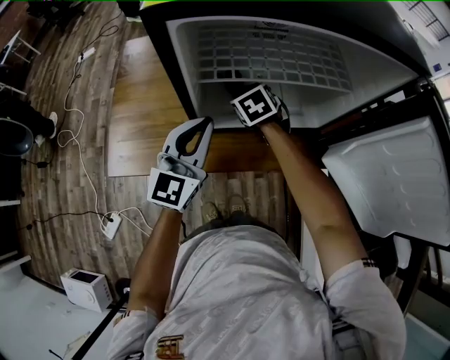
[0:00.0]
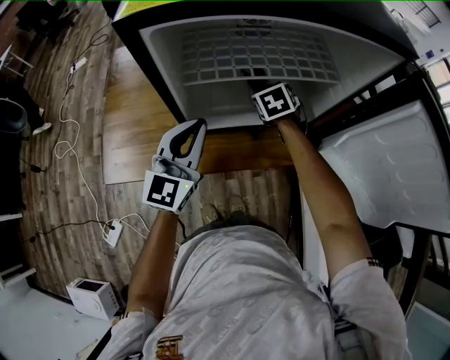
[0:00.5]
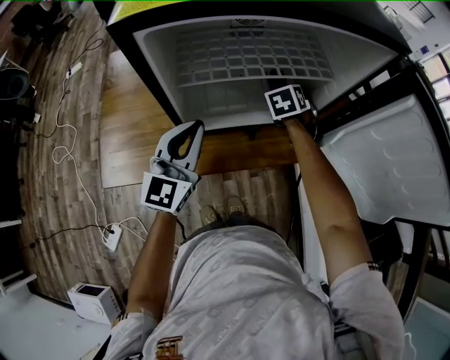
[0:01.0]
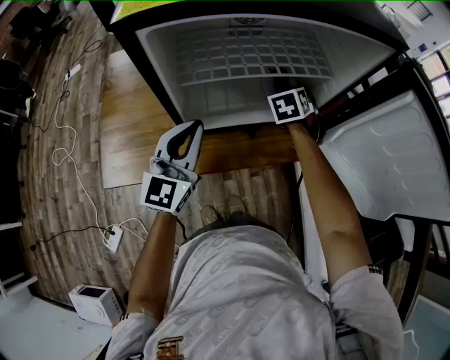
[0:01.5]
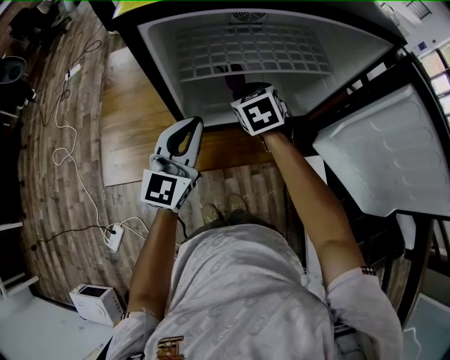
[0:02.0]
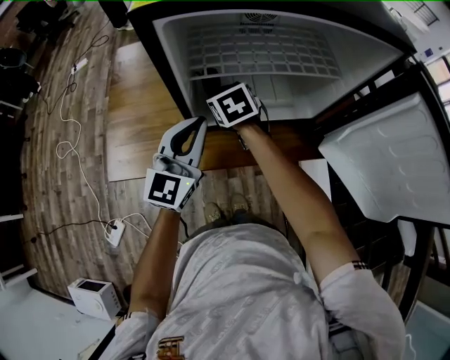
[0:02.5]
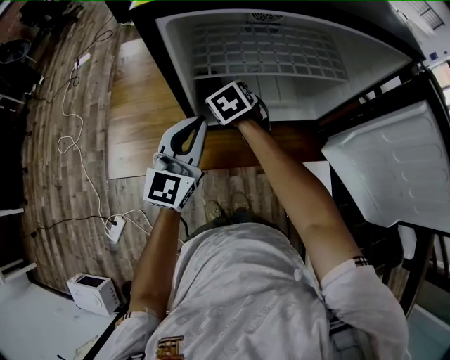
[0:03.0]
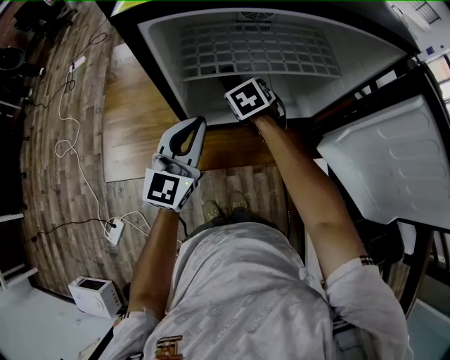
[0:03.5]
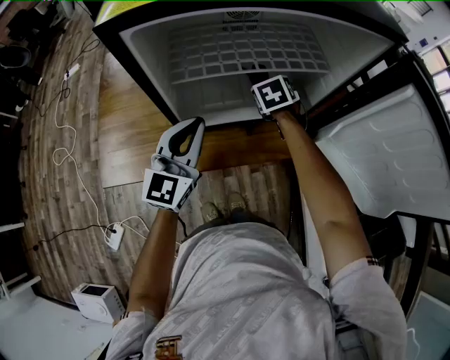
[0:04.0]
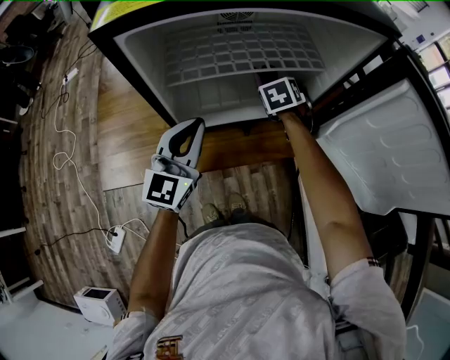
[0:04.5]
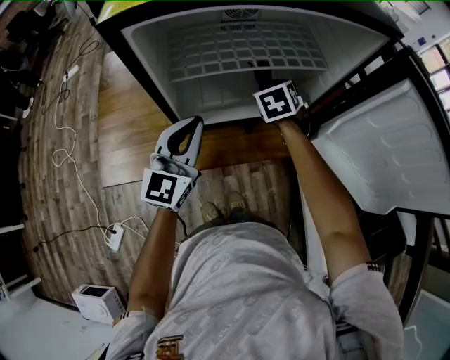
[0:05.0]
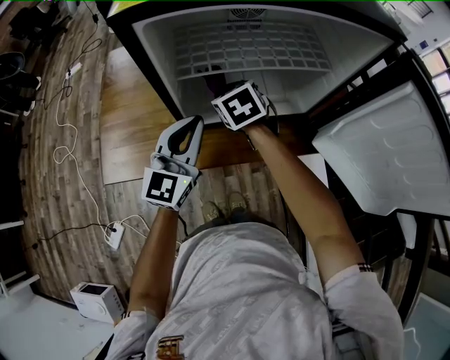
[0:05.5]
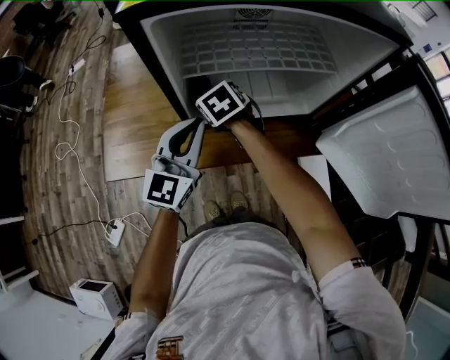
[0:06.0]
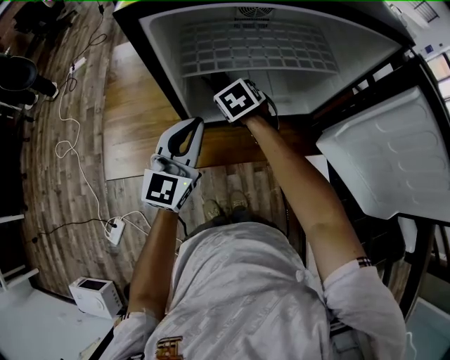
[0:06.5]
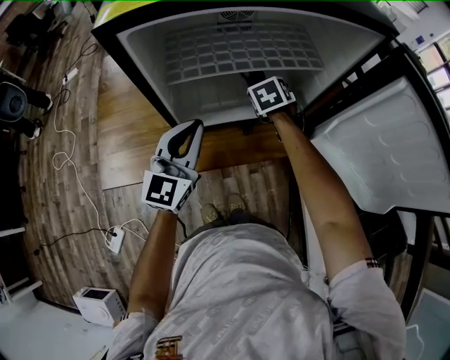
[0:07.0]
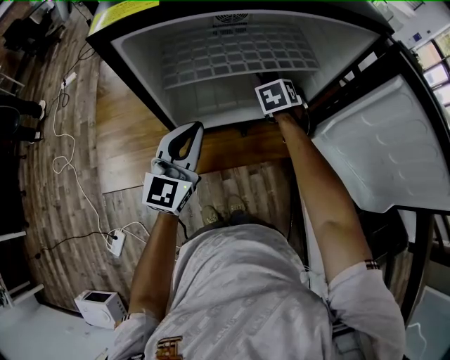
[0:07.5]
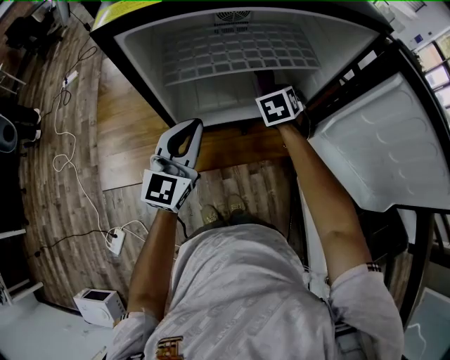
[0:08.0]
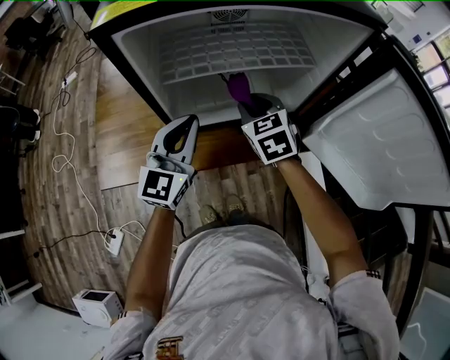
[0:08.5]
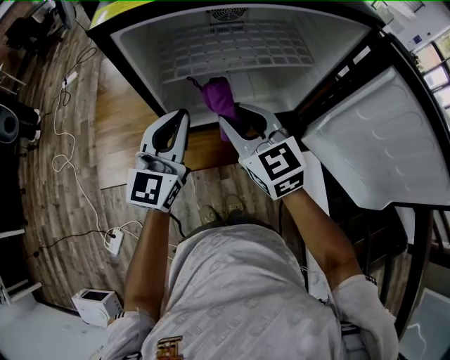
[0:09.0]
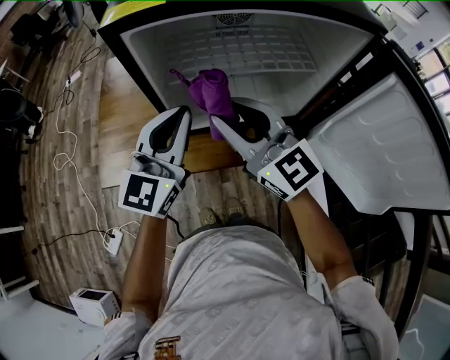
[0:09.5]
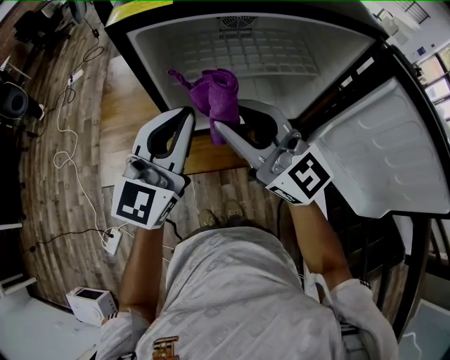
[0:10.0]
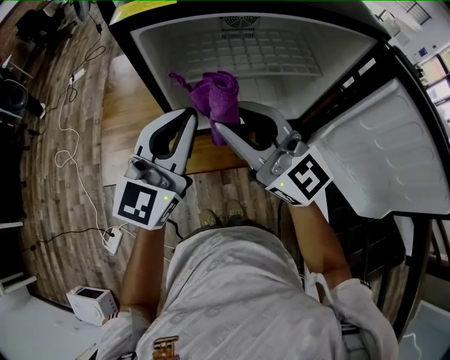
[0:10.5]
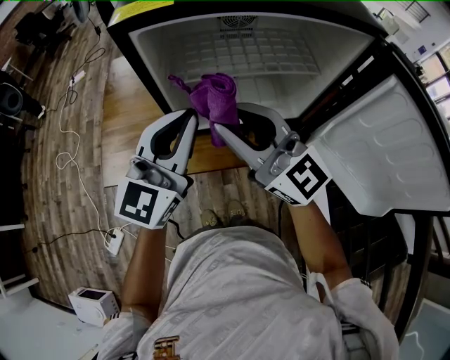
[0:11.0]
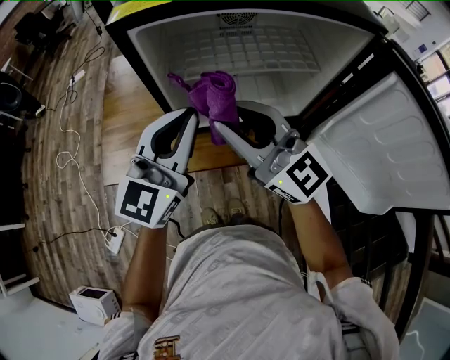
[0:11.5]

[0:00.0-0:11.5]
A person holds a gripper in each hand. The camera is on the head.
0:00.0 to 0:02.0: The right gripper travels upward by about 5 cm, and goes to the right and returns, roughly 20 cm each way.
0:02.0 to 0:04.0: The right gripper travels to the right and downward by roughly 10 cm.
0:04.0 to 0:06.0: The right gripper travels to the left and backward by about 20 cm, and changes its angle by some 20 degrees.
0:06.0 to 0:07.5: The right gripper changes place by approximately 25 cm, and turns by some 30 degrees.
0:07.5 to 0:09.5: The left gripper travels upward by roughly 10 cm. The right gripper moves about 35 cm, and tilts its fingers approximately 60 degrees upward.
0:09.5 to 0:11.5: The grippers make only small movements.

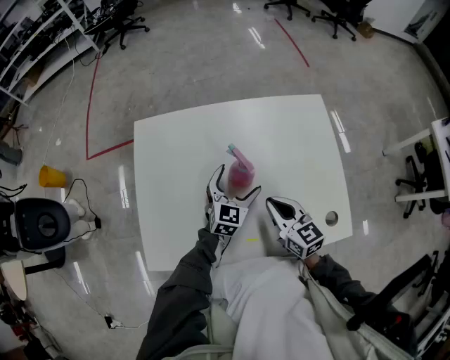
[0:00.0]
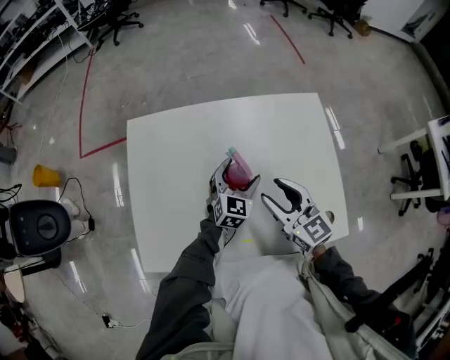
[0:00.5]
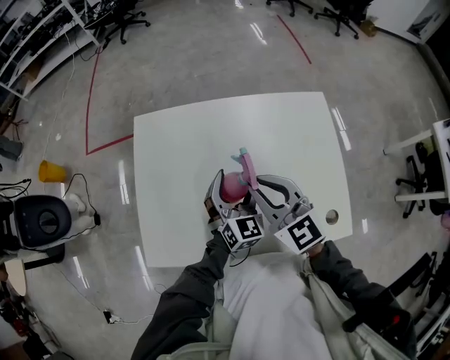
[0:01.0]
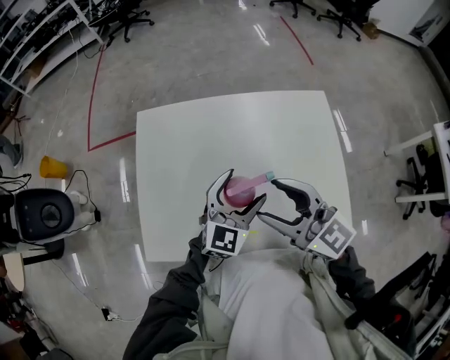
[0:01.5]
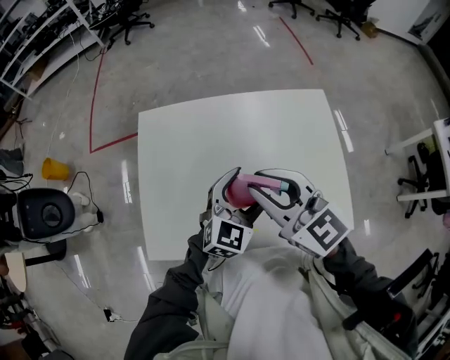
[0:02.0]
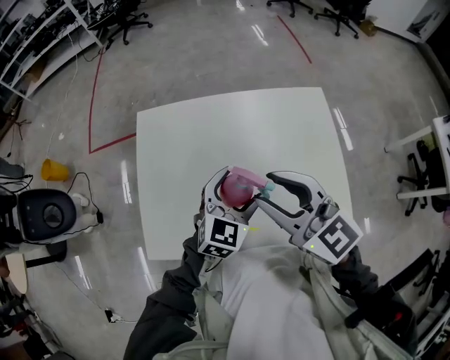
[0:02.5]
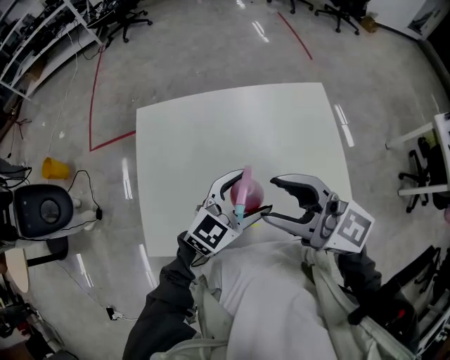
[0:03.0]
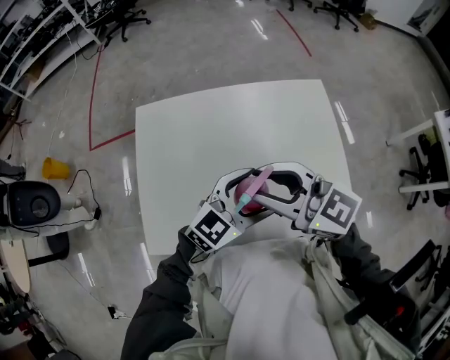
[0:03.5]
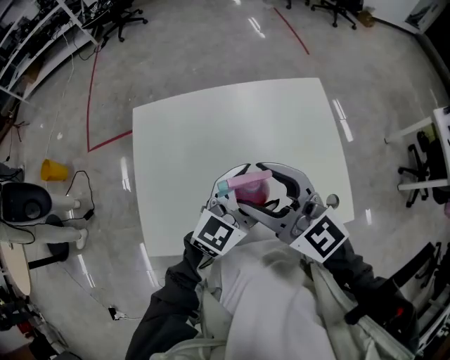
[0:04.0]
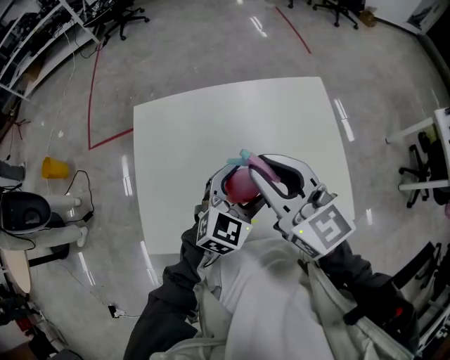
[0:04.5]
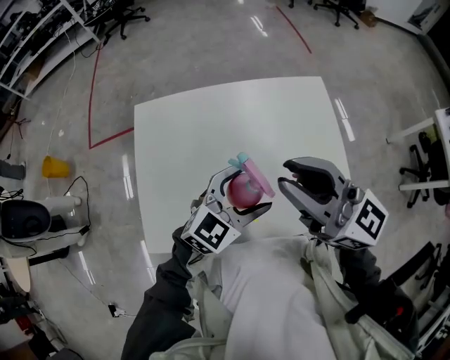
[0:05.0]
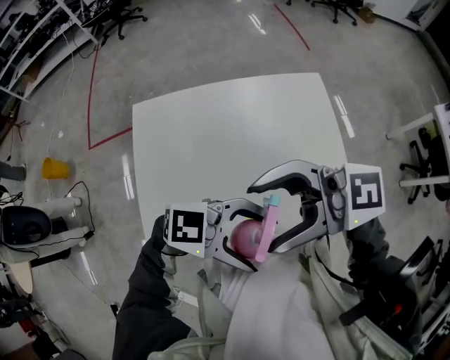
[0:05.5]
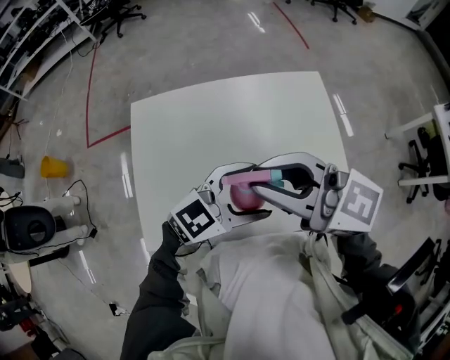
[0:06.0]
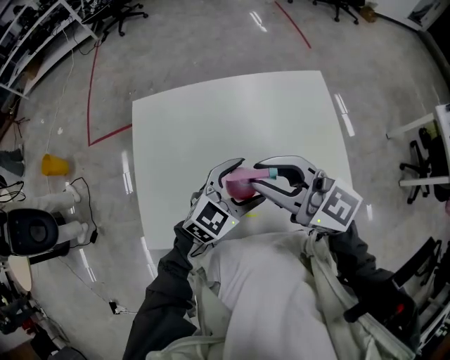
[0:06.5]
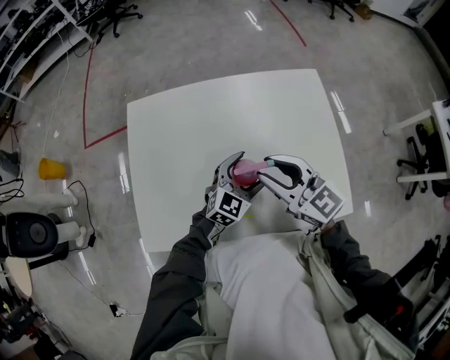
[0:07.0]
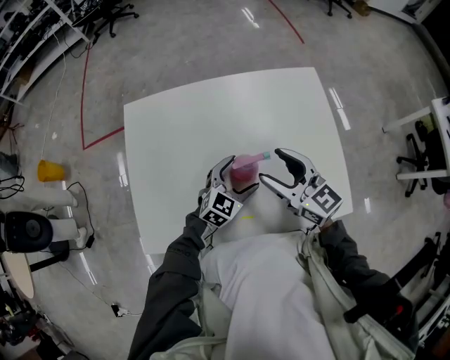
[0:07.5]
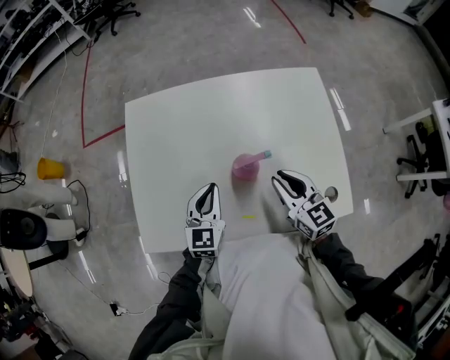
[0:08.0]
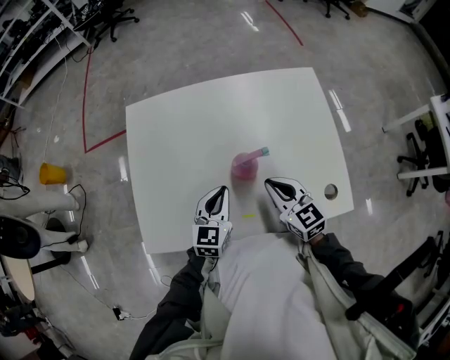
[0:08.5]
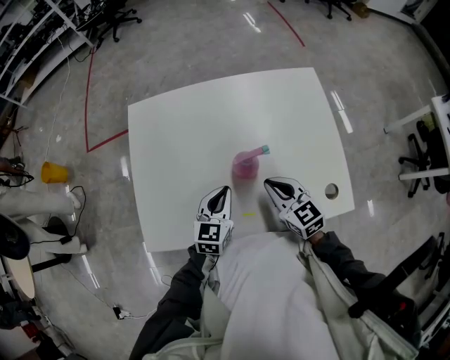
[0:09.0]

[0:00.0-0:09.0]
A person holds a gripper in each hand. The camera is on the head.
0:00.0 to 0:02.0: The right gripper heads upward, covering roughly 20 cm, changes its angle by approximately 20 degrees, and opens, then closes again; the left gripper travels upward and backward by some 15 cm.
0:02.0 to 0:04.5: The right gripper opens, then closes again.
0:04.5 to 0:07.0: The two grippers go some 10 cm downward. The right gripper opens, then closes again.
0:07.0 to 0:09.0: The right gripper moves downward, roughly 10 cm, and closes; the left gripper is displaced to the left by about 10 cm, swivels some 30 degrees, and closes up.

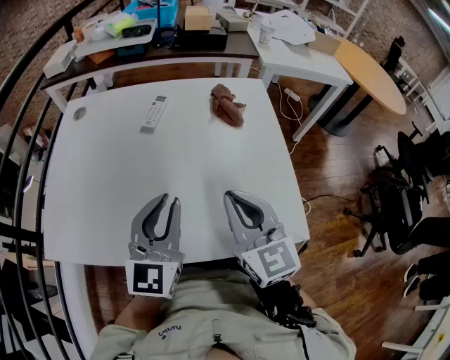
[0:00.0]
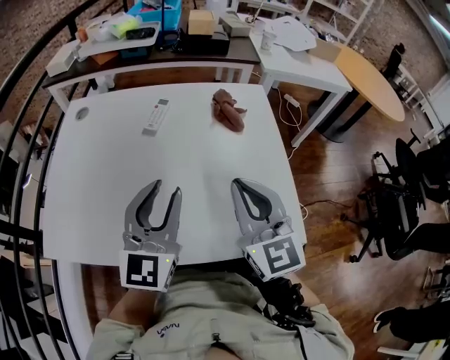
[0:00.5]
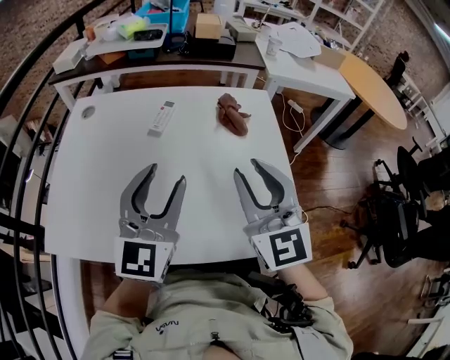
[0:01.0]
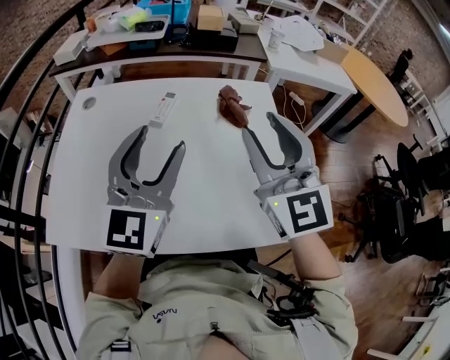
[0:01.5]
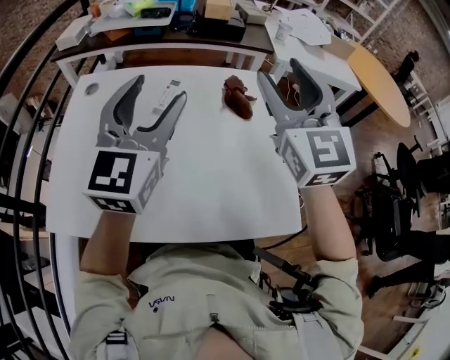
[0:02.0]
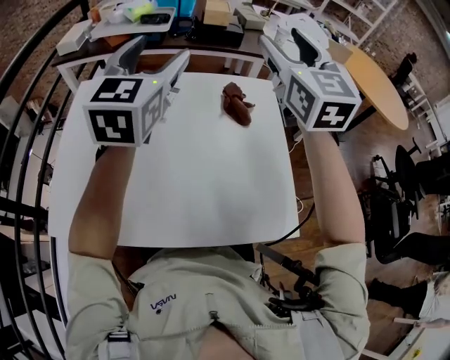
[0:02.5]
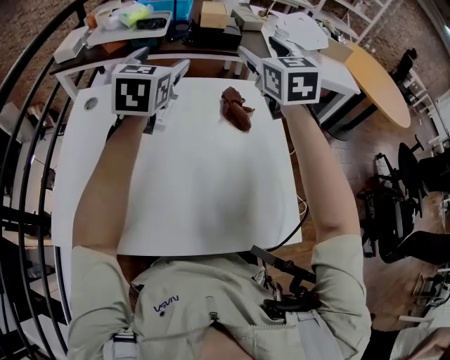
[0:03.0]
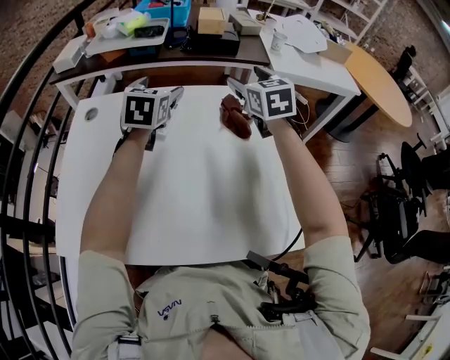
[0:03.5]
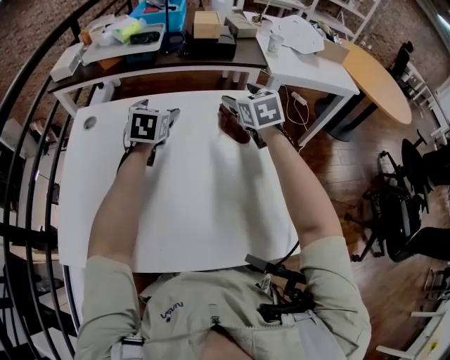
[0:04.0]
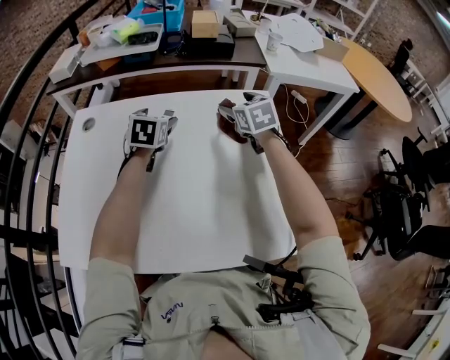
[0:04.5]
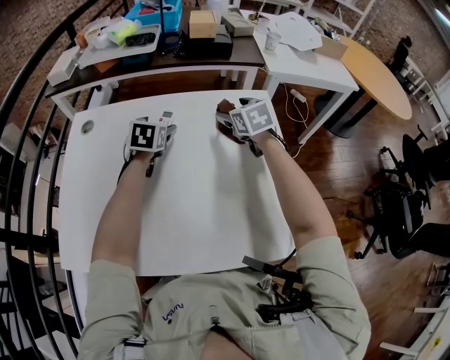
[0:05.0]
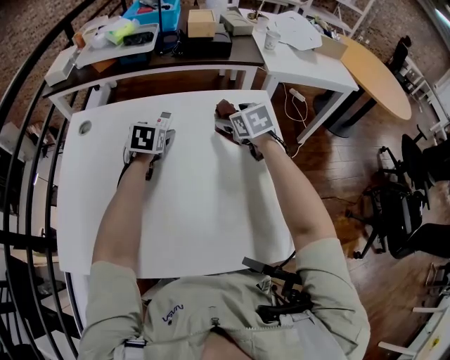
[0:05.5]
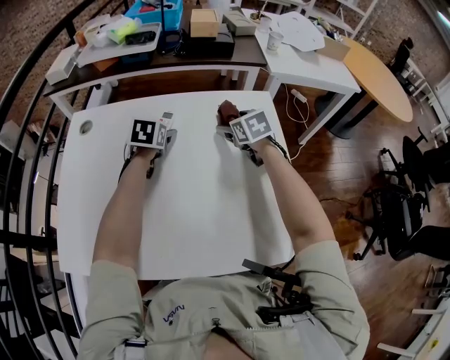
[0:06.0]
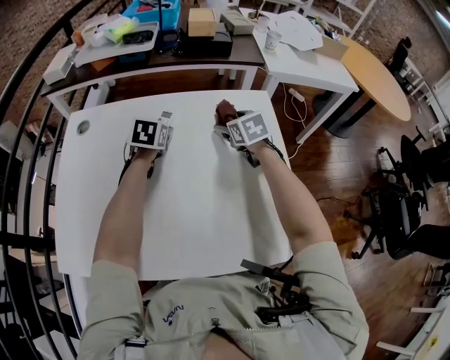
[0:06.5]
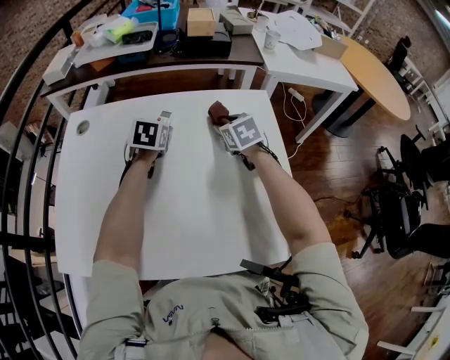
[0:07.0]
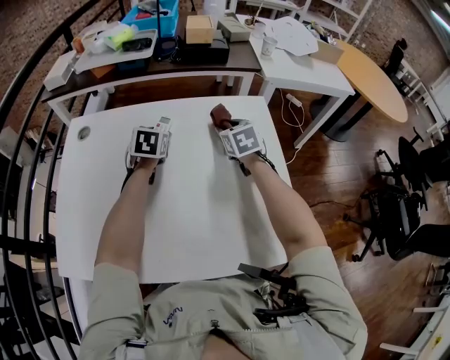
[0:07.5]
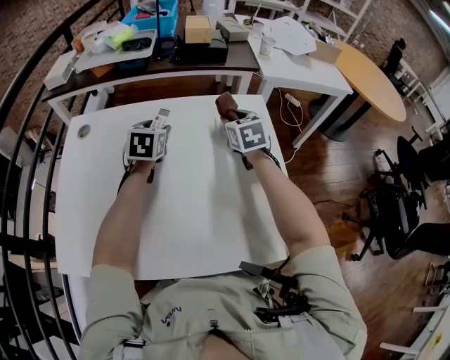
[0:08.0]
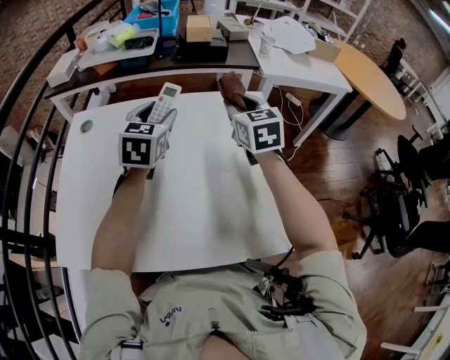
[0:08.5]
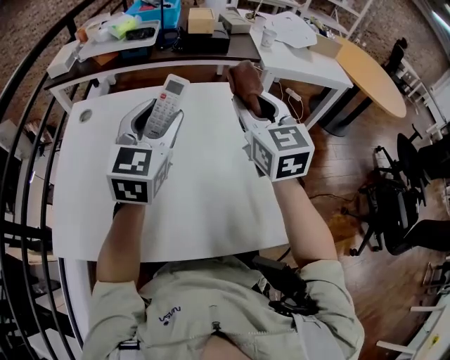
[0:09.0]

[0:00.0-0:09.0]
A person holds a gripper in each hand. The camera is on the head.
0:00.0 to 0:02.0: Both grippers travel together upward and forward, approximately 20 cm. The right gripper changes its angle by approximately 20 degrees, and opens. Meanwhile the left gripper opens its fingers.
0:02.0 to 0:04.5: The left gripper moves forward and downward, approximately 30 cm, and tilts its fingers roughly 40 degrees downward, while the right gripper heads downward and forward, covering about 30 cm, and points its fingers about 40 degrees further downward.
0:04.5 to 0:07.0: The two grippers go some 5 cm downward. The left gripper closes up, while the right gripper closes up.
0:07.0 to 0:09.0: The two grippers go approximately 25 cm upward and backward. The right gripper tips its fingers upward by approximately 40 degrees, while the left gripper angles its fingers upward, by about 40 degrees.
